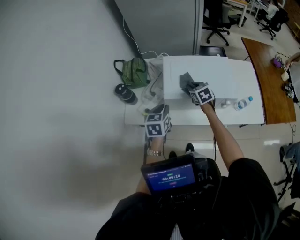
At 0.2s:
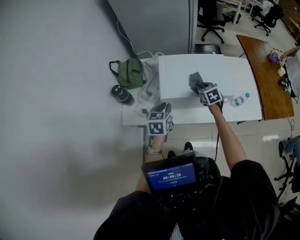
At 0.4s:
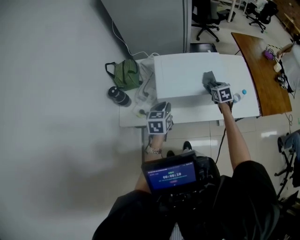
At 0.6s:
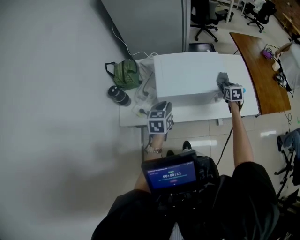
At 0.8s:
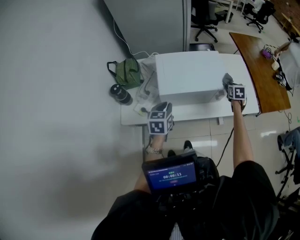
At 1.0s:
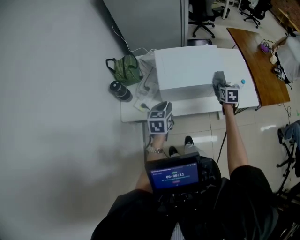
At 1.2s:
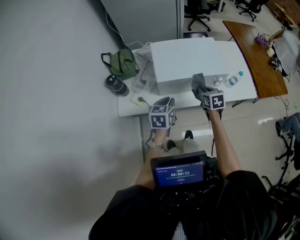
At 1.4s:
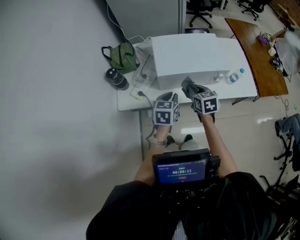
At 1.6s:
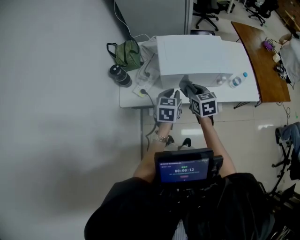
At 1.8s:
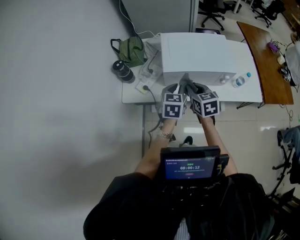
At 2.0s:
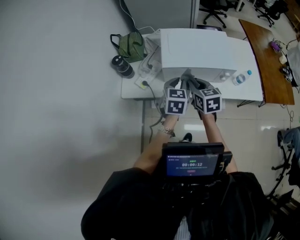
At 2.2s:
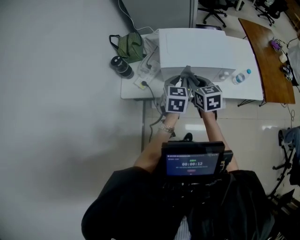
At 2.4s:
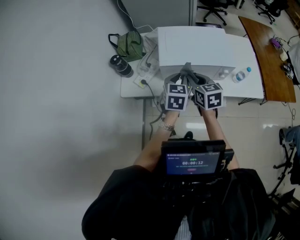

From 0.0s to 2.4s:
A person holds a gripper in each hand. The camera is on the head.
From 0.0s to 1.2s: The left gripper changes place by about 10 cm; the right gripper rotates about 20 degrees.
From 1.2s to 2.4s: The left gripper is displaced to the right by approximately 5 cm. The right gripper travels upward and to the left by approximately 10 cm.

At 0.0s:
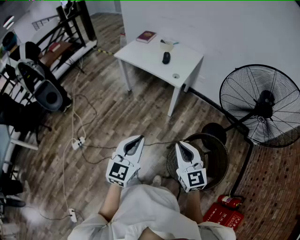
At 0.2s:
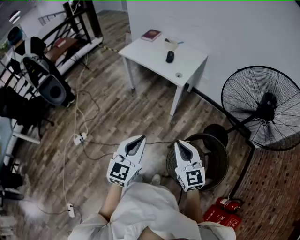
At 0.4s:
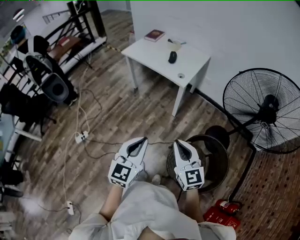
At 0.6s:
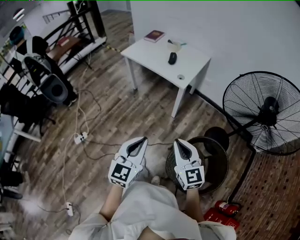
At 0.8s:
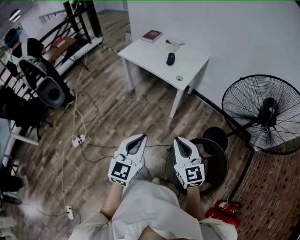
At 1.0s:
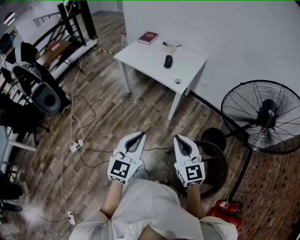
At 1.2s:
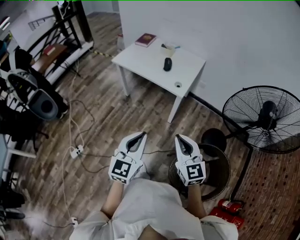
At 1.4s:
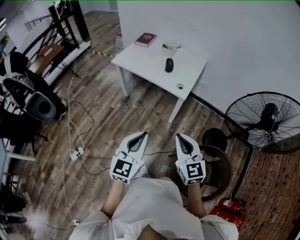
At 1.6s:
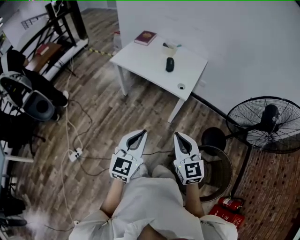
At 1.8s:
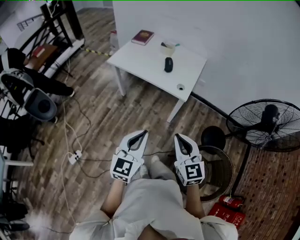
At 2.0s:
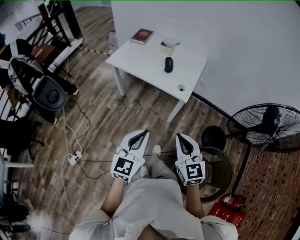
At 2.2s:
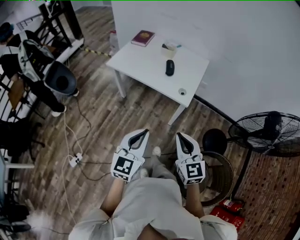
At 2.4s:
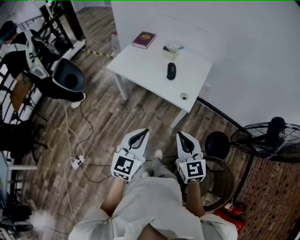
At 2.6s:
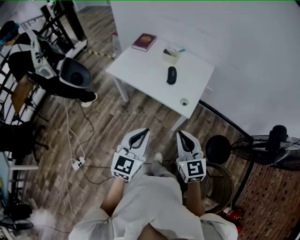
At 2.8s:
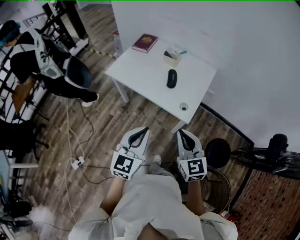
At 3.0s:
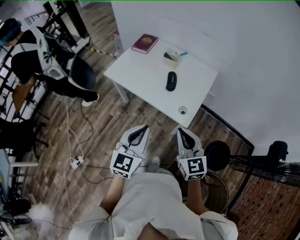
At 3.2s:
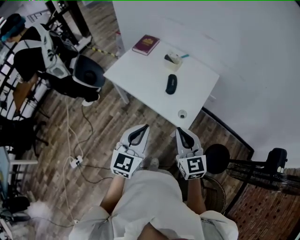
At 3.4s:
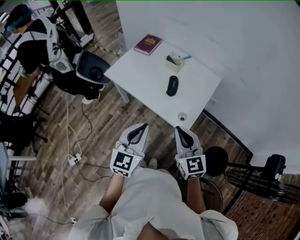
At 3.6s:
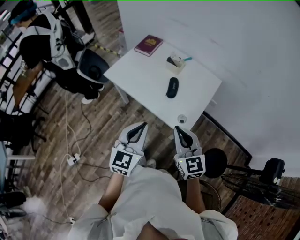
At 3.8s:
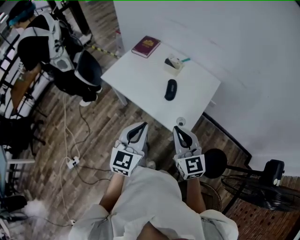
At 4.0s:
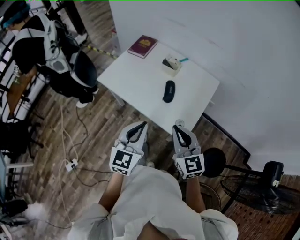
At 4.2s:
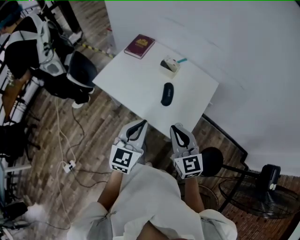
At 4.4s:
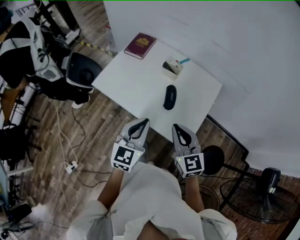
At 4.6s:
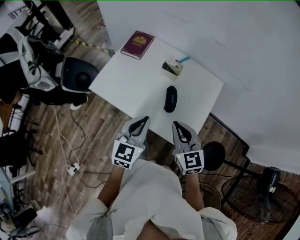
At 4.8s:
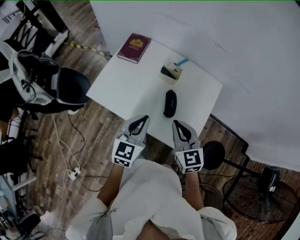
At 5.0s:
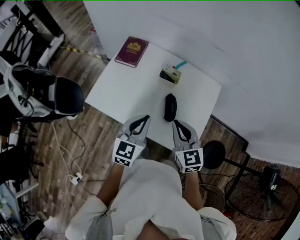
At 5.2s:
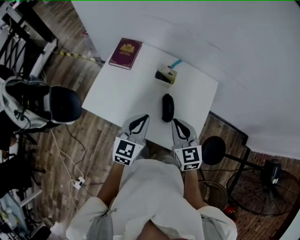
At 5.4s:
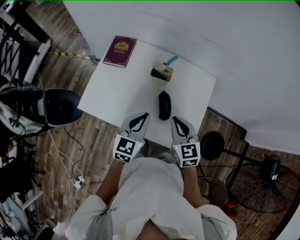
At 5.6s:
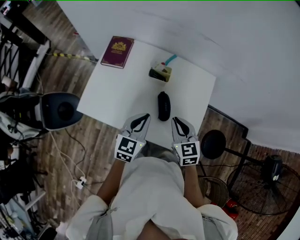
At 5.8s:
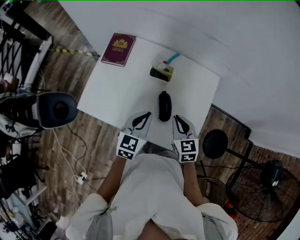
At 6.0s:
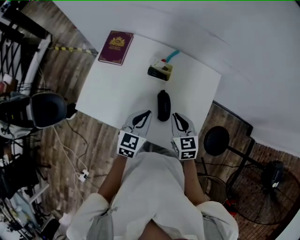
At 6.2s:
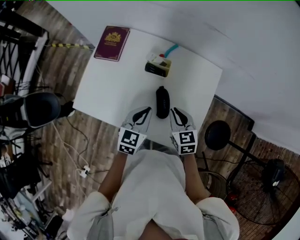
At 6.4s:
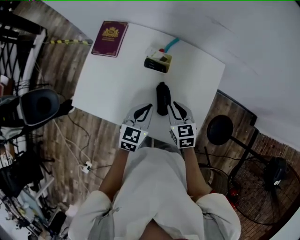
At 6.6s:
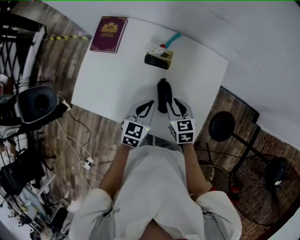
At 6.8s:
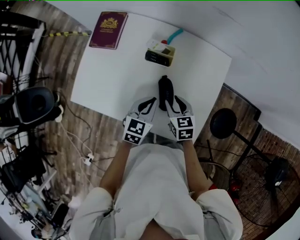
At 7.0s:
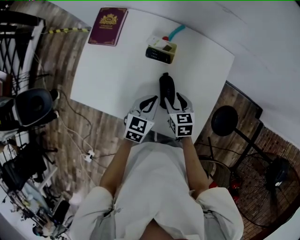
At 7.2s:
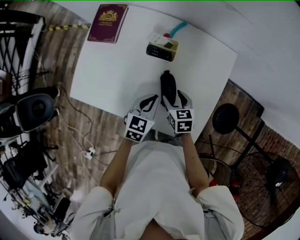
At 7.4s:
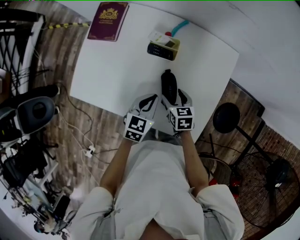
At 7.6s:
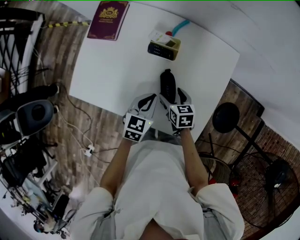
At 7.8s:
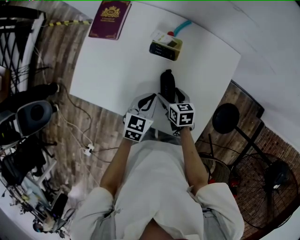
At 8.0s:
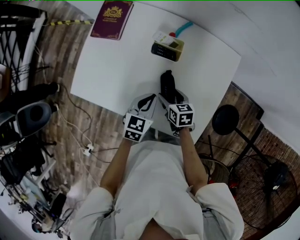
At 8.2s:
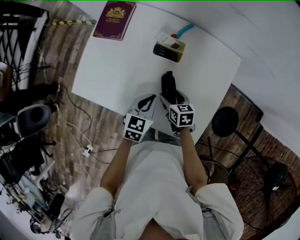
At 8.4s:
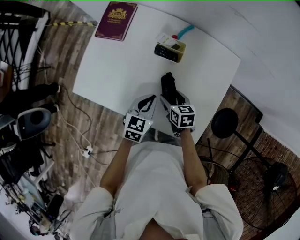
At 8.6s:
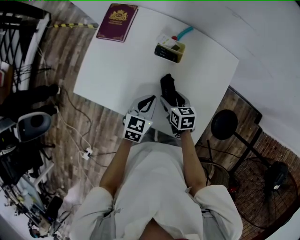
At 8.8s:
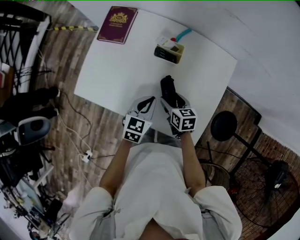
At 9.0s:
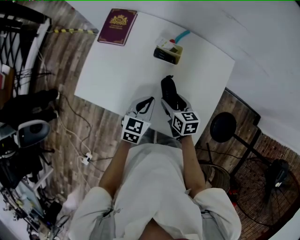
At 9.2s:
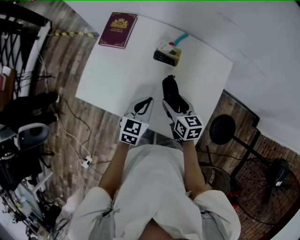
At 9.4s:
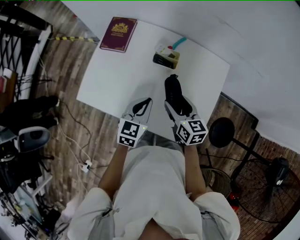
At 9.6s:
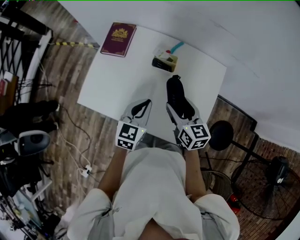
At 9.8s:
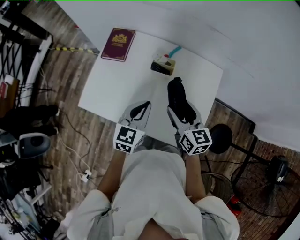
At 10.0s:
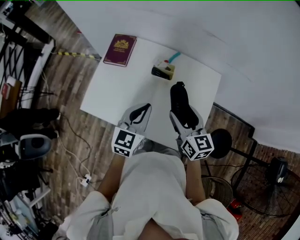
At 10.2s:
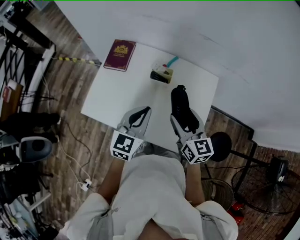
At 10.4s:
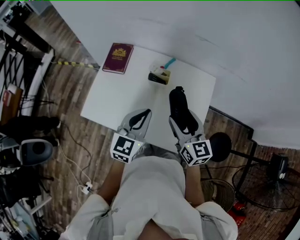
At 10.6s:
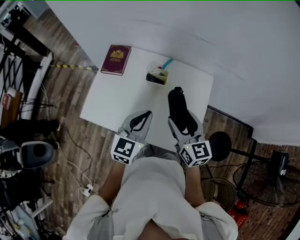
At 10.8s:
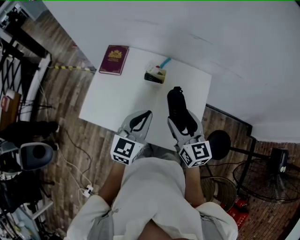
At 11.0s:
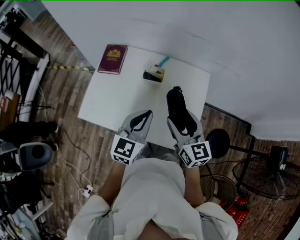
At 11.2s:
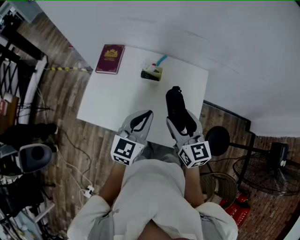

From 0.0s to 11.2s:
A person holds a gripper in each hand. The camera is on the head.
From 0.0s to 1.6s: The left gripper moves forward, roughly 20 cm. Meanwhile the right gripper heads forward and to the left, covering about 20 cm.
From 1.6s to 3.2s: The grippers both shift forward by about 30 cm.
From 3.2s to 4.8s: The two grippers go about 25 cm forward.
From 4.8s to 6.4s: The left gripper shifts some 15 cm downward, forward and to the right, while the right gripper shifts some 20 cm downward and forward, and swivels approximately 20 degrees.
From 6.4s to 8.0s: The left gripper moves downward, about 5 cm. Meanwhile the right gripper moves downward, approximately 10 cm, changes its angle by roughly 20 degrees, and opens up.
From 8.0s to 9.6s: The right gripper is displaced upward by some 20 cm, and turns by about 30 degrees. Meanwhile the left gripper is displaced upward by roughly 10 cm.
From 9.6s to 11.2s: The right gripper heads upward and backward, covering about 15 cm. The left gripper shifts approximately 10 cm upward.

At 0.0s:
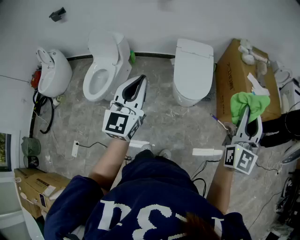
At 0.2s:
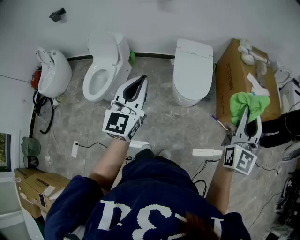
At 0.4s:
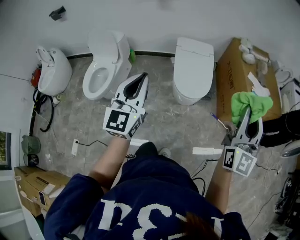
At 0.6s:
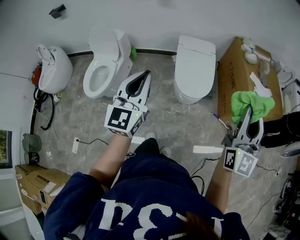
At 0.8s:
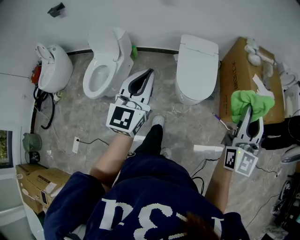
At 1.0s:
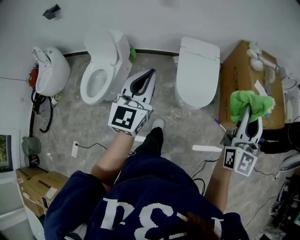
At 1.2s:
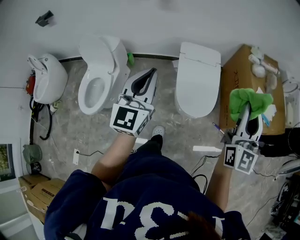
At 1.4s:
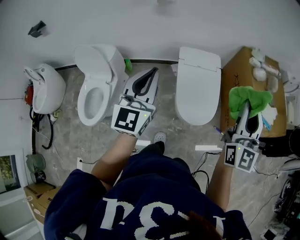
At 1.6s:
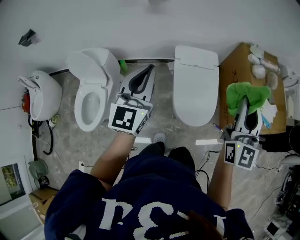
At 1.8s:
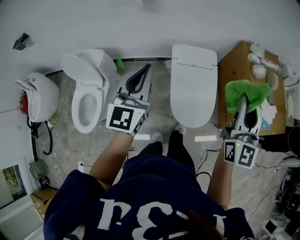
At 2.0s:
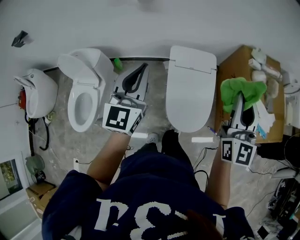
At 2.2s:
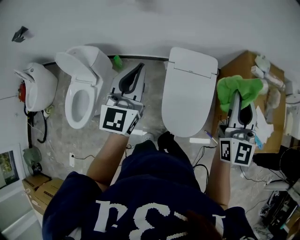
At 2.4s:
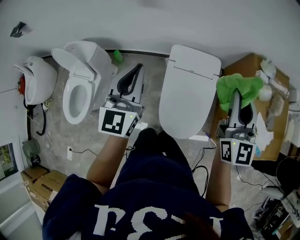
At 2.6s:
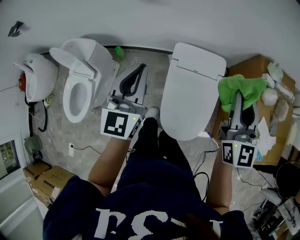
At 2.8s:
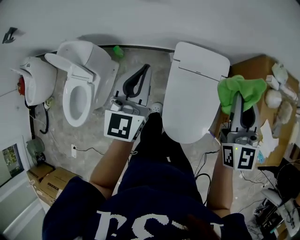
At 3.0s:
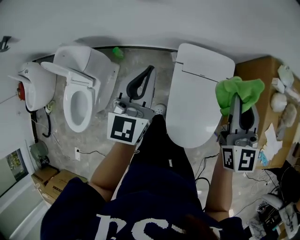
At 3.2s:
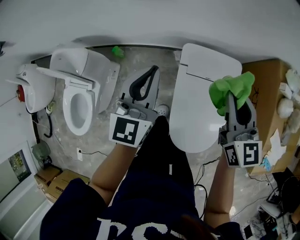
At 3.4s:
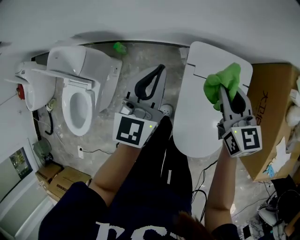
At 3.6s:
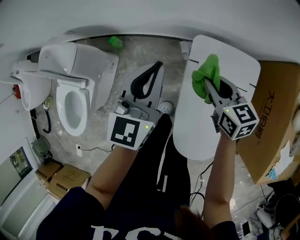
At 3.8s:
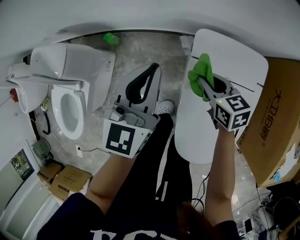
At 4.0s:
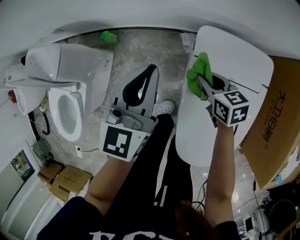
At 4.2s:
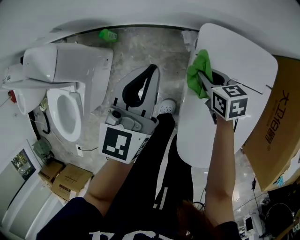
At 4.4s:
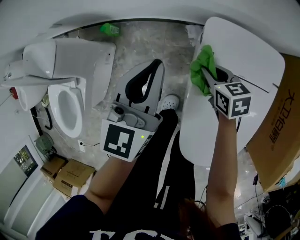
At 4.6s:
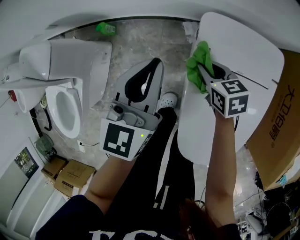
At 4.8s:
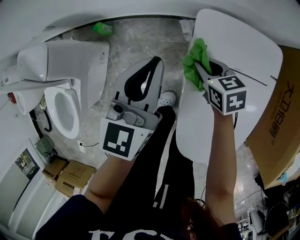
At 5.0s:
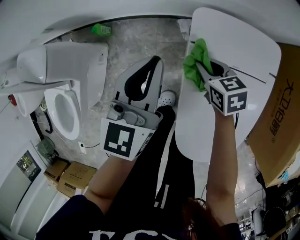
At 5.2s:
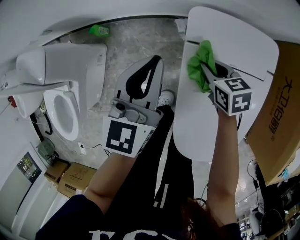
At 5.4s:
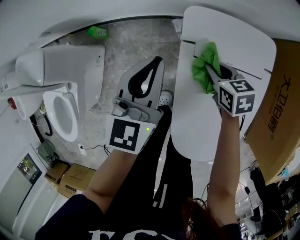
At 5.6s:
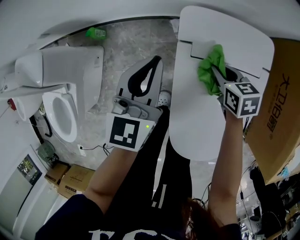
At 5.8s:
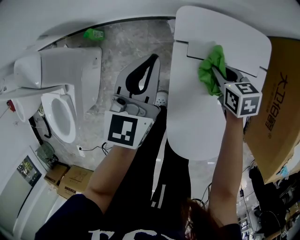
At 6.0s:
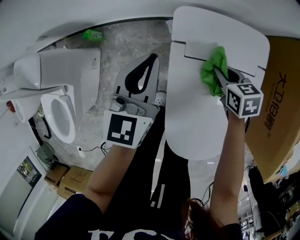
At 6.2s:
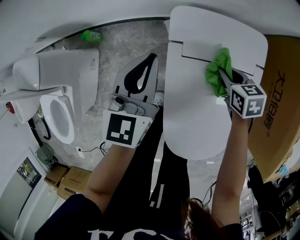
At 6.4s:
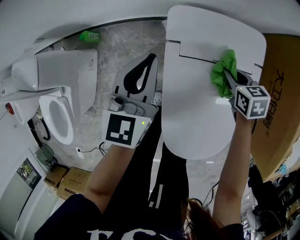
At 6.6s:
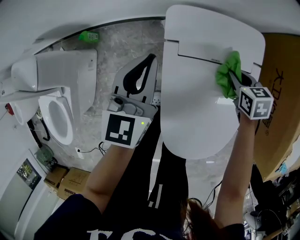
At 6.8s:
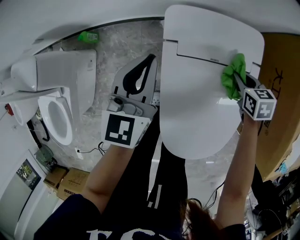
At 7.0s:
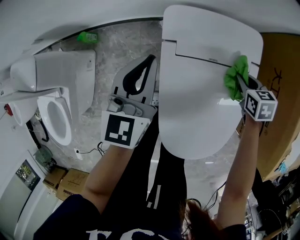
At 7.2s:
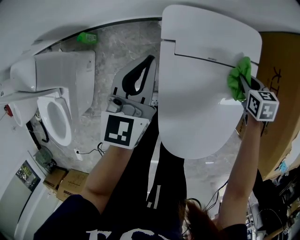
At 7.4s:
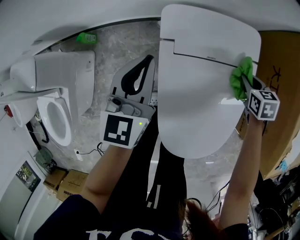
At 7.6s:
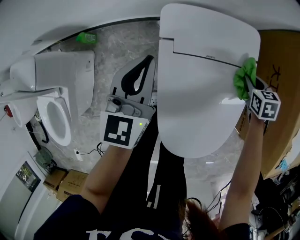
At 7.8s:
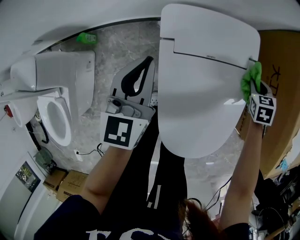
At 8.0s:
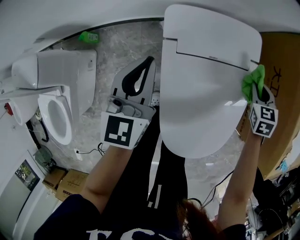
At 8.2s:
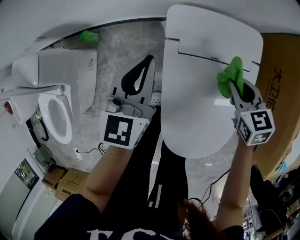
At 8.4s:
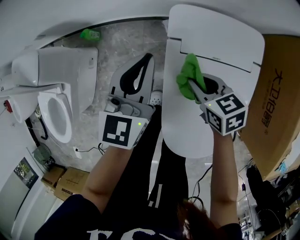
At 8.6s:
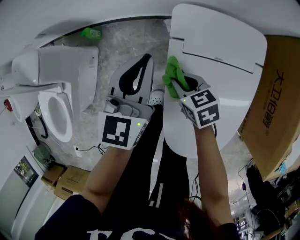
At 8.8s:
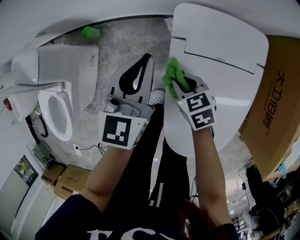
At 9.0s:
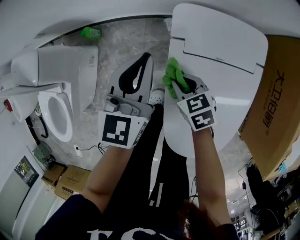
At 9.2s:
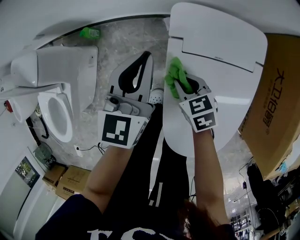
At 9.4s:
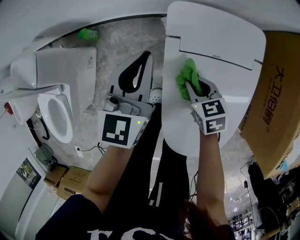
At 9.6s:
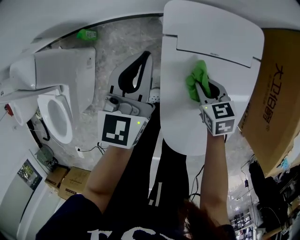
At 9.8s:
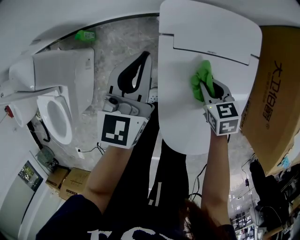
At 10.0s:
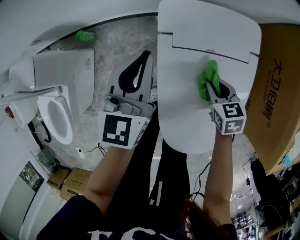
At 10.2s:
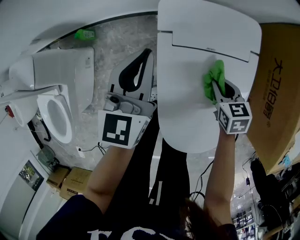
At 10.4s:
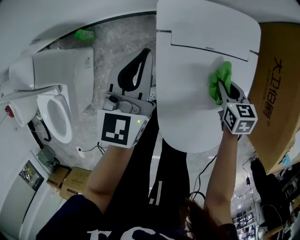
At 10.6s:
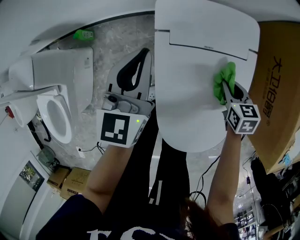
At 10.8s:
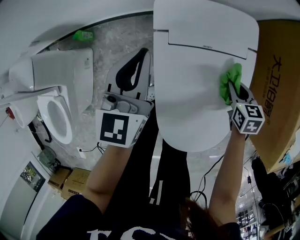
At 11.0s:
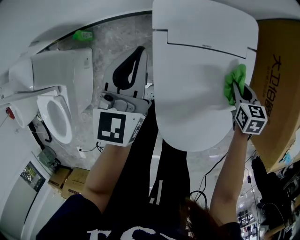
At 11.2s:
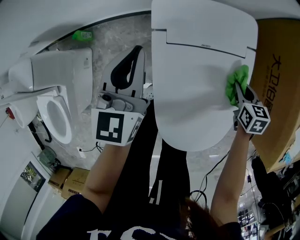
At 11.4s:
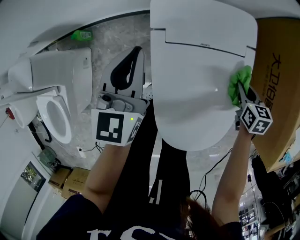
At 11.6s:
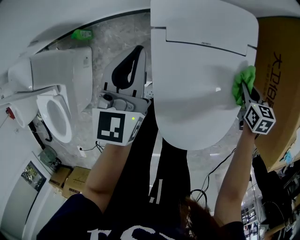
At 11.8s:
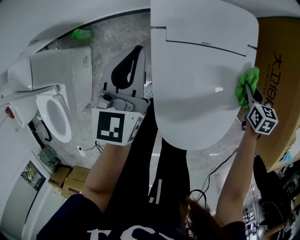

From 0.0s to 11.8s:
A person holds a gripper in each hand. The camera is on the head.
From 0.0s to 1.4s: The two grippers go roughly 35 cm forward.
From 1.4s to 3.0s: The two grippers travel together, forward, approximately 40 cm. Both grippers travel together downward, some 20 cm. The right gripper swivels about 30 degrees.
From 3.0s to 4.4s: The left gripper is displaced downward by roughly 35 cm, while the right gripper shifts approximately 50 cm downward, and tilts its fingers roughly 40 degrees downward.
From 4.4s to 6.0s: The left gripper is displaced to the right by approximately 10 cm, while the right gripper shifts roughly 15 cm to the right.
From 6.0s to 7.4s: The right gripper heads to the right, covering roughly 15 cm.
From 7.4s to 8.8s: The right gripper reaches approximately 10 cm upward, then returns, and turns by some 30 degrees.
From 8.8s to 10.4s: The left gripper shifts by approximately 5 cm. The right gripper is displaced to the right by roughly 20 cm, and rotates about 30 degrees.
From 10.4s to 11.8s: The right gripper is displaced to the right by about 15 cm.
